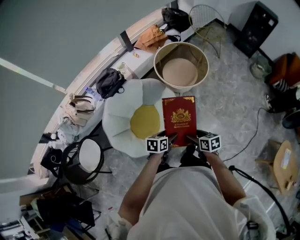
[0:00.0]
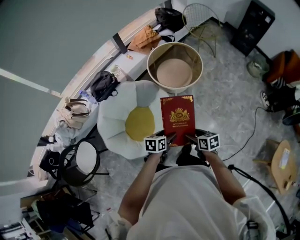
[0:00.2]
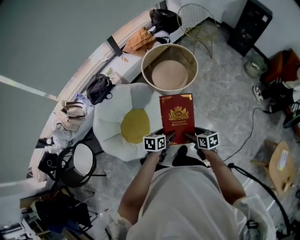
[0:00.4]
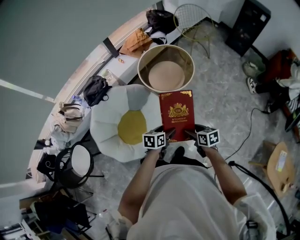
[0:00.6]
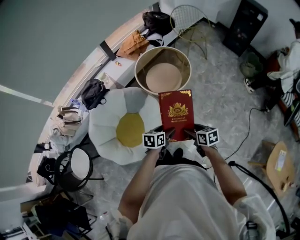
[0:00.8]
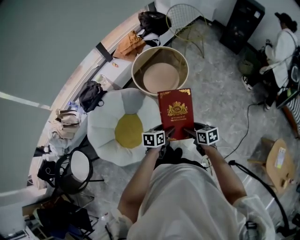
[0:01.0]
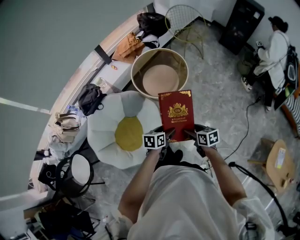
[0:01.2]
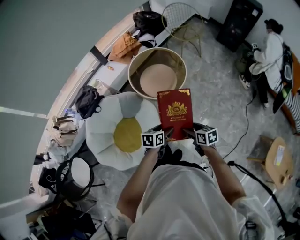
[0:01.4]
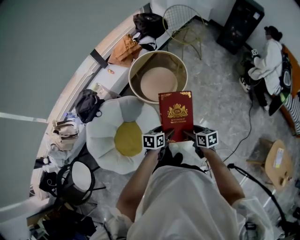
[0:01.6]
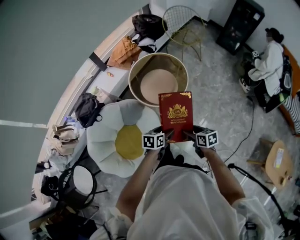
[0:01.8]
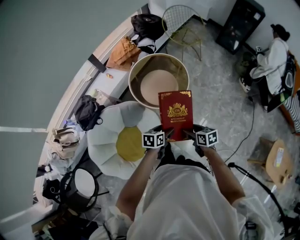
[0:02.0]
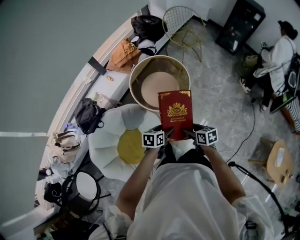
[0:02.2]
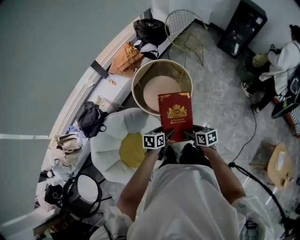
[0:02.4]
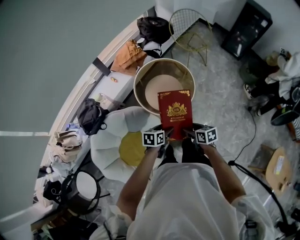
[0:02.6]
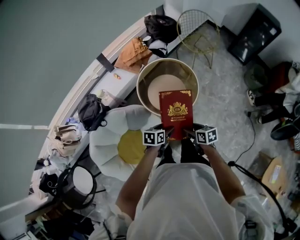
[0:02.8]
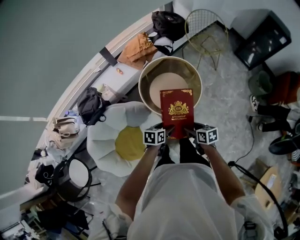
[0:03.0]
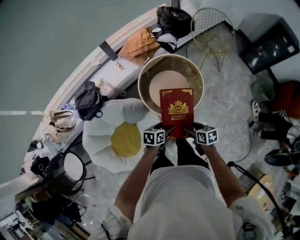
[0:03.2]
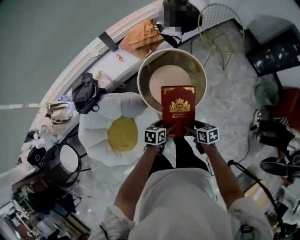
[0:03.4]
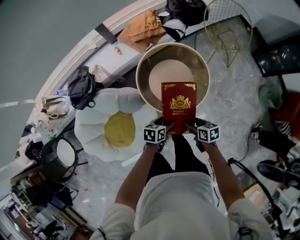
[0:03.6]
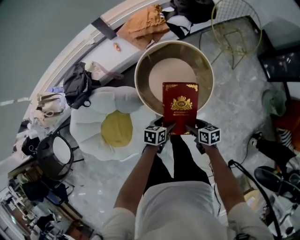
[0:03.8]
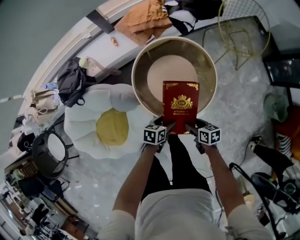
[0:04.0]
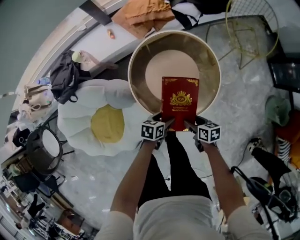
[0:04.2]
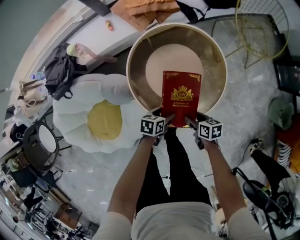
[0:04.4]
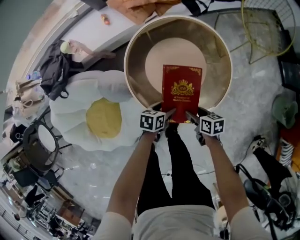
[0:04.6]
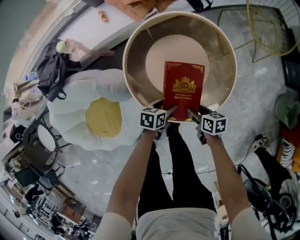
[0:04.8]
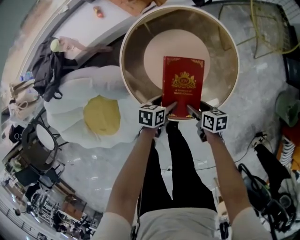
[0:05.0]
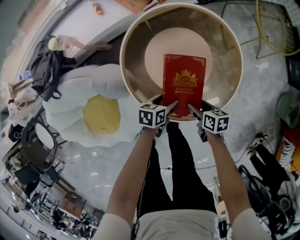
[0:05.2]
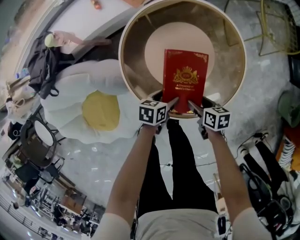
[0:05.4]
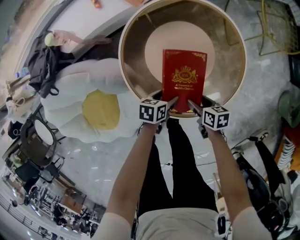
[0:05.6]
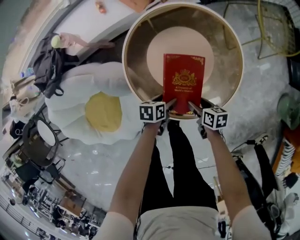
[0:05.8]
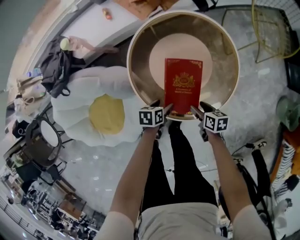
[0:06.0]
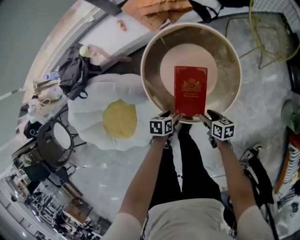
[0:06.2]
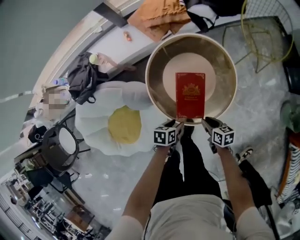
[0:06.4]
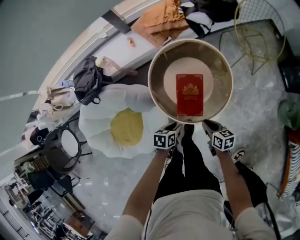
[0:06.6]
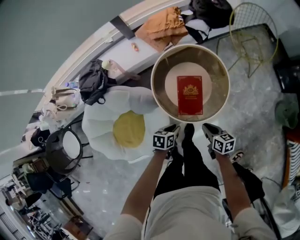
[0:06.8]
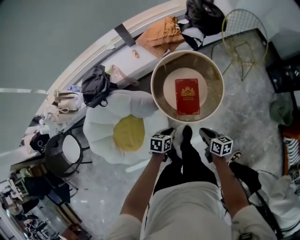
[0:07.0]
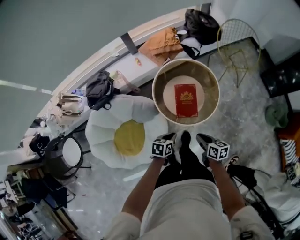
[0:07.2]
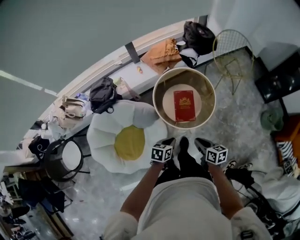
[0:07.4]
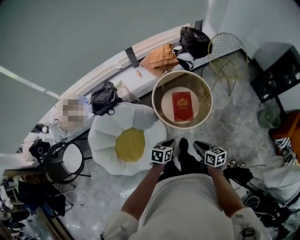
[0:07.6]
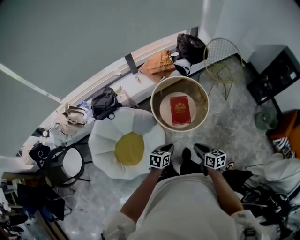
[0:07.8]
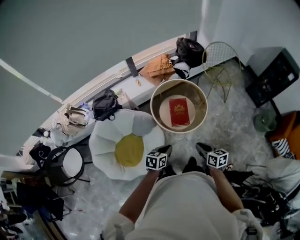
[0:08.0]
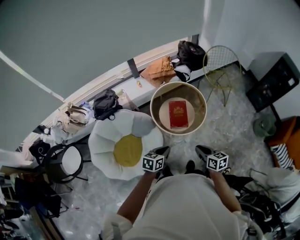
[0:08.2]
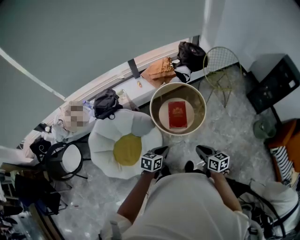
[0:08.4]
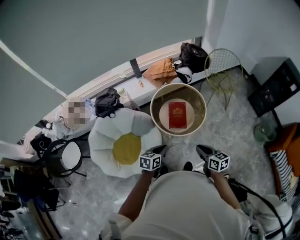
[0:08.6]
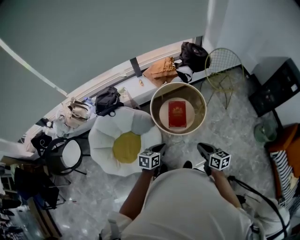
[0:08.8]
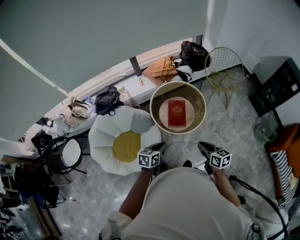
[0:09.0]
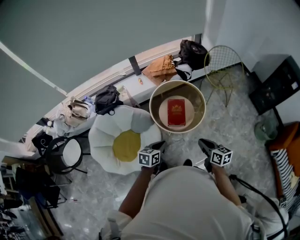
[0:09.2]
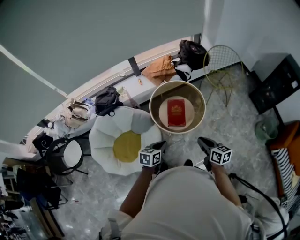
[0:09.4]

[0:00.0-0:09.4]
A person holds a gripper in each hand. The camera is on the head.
0:00.0 to 0:01.6: Both grippers travel together forward and to the right, about 25 cm.
0:01.6 to 0:03.2: The two grippers go some 20 cm forward.
0:03.2 to 0:04.8: The grippers both shift downward by roughly 35 cm.
0:04.8 to 0:06.2: The left gripper shifts by roughly 5 cm.
0:06.2 to 0:07.8: The grippers both shift upward and backward by approximately 40 cm. The left gripper changes its angle by about 30 degrees, and closes up. The right gripper changes its angle by about 30 degrees, and closes up.
0:07.8 to 0:09.4: The right gripper heads to the right and upward, covering approximately 15 cm. The left gripper is displaced upward by roughly 5 cm.

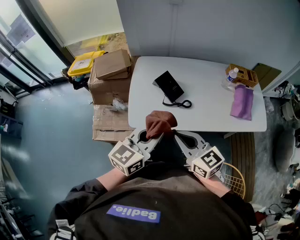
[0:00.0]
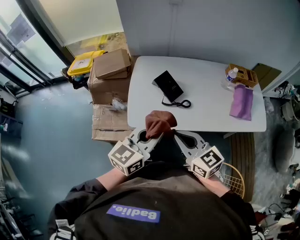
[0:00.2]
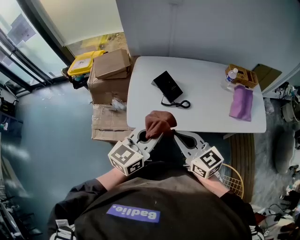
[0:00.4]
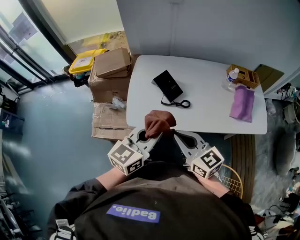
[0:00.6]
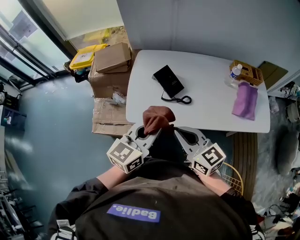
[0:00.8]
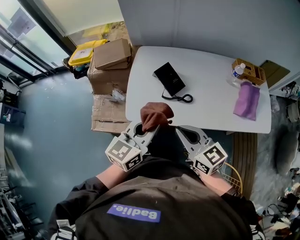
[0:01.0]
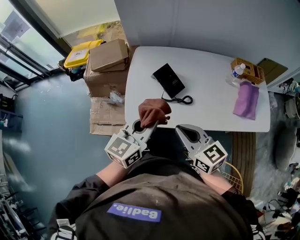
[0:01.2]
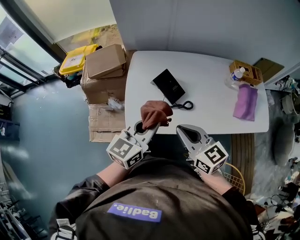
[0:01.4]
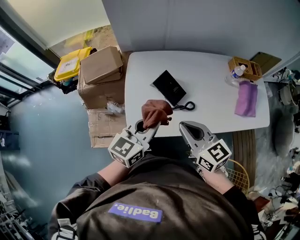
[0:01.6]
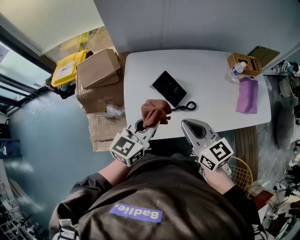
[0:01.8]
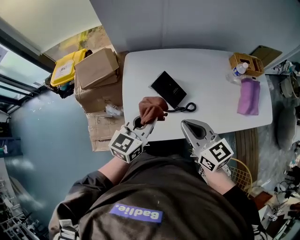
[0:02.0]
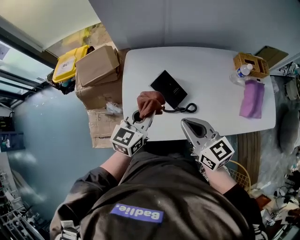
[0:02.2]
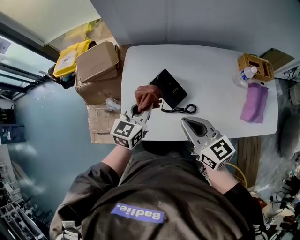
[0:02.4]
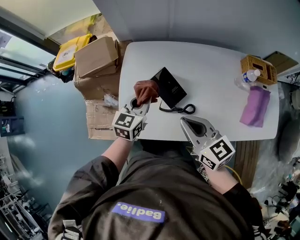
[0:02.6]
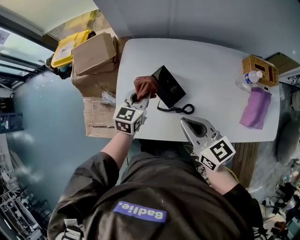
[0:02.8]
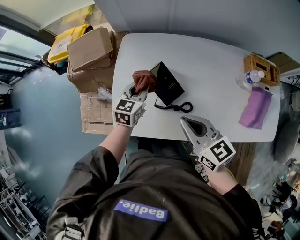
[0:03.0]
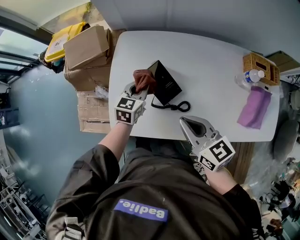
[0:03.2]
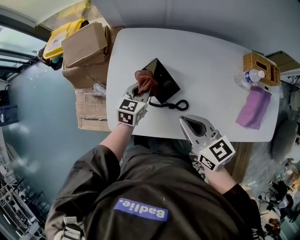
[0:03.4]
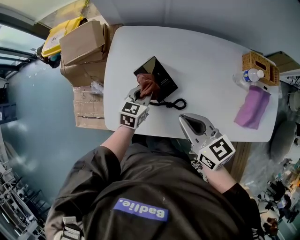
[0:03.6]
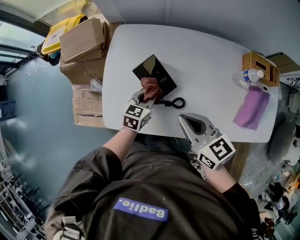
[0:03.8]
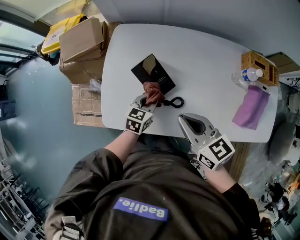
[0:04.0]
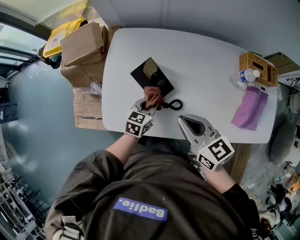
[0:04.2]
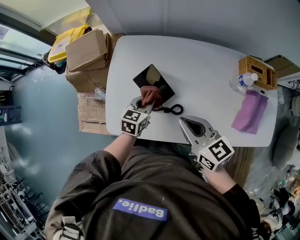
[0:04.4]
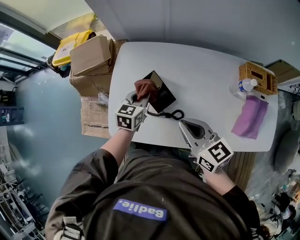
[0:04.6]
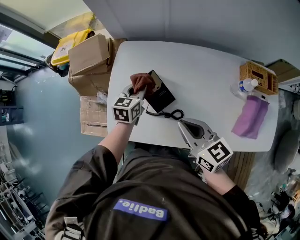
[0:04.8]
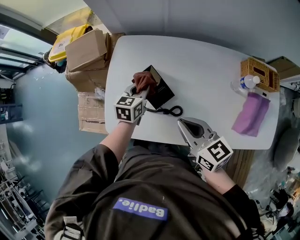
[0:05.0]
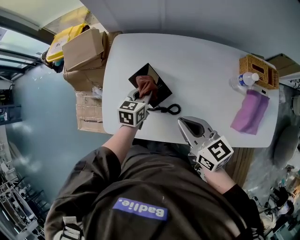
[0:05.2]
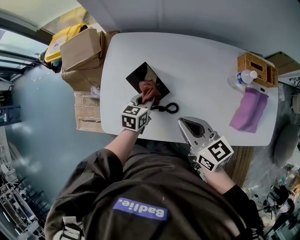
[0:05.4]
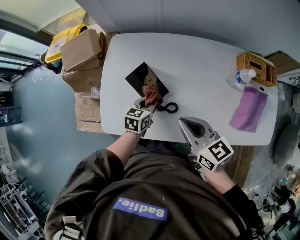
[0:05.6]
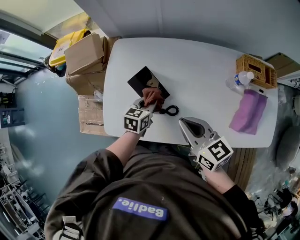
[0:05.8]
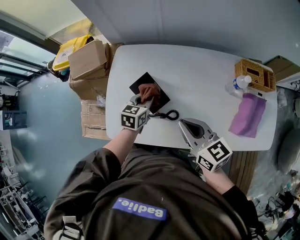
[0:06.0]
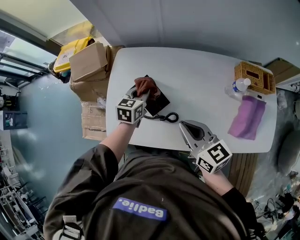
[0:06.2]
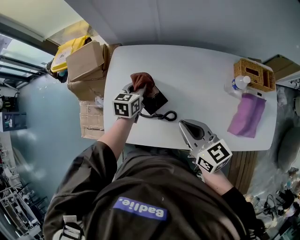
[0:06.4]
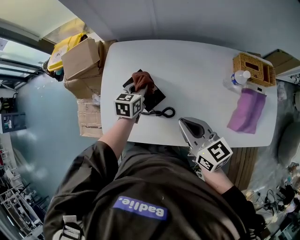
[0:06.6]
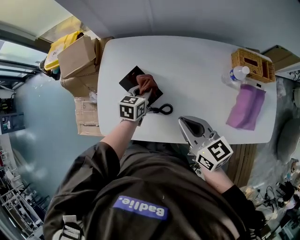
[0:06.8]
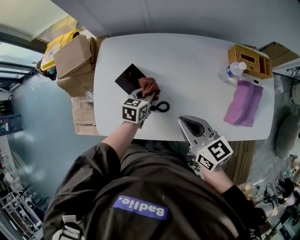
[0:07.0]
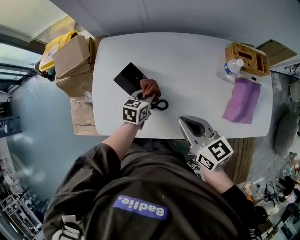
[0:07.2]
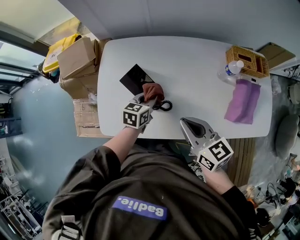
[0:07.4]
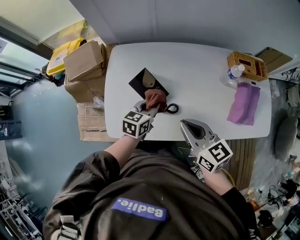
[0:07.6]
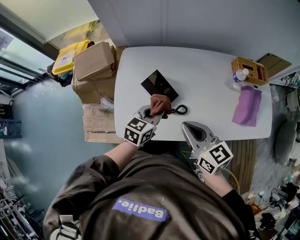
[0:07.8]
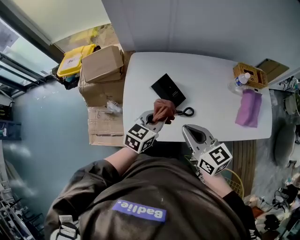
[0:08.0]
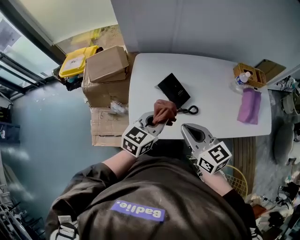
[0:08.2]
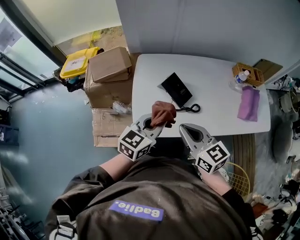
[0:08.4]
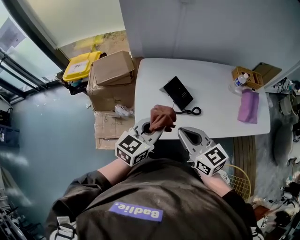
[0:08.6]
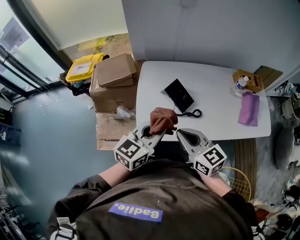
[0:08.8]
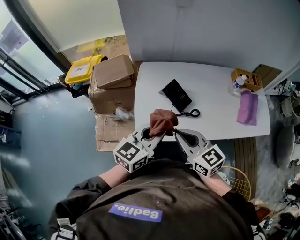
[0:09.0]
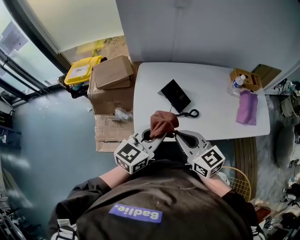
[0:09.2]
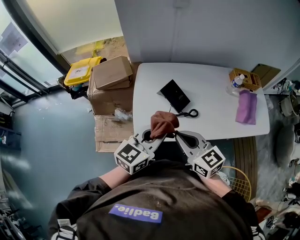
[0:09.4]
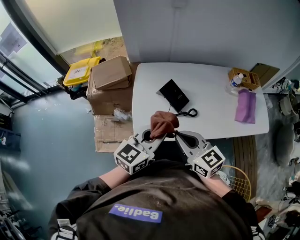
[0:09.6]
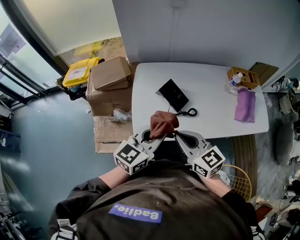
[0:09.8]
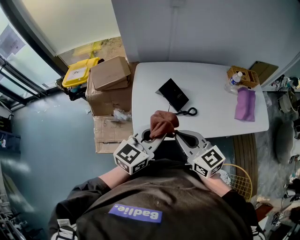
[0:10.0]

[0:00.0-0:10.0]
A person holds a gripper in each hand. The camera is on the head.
0:00.0 to 0:01.4: Both grippers travel together forward, approximately 10 cm.
0:01.4 to 0:02.8: The left gripper moves forward and downward, some 25 cm, and changes its angle by about 20 degrees; the right gripper shifts approximately 15 cm forward, downward and to the right.
0:02.8 to 0:04.2: The left gripper travels downward, to the right and backward by about 15 cm. Meanwhile the right gripper heads to the right, covering about 5 cm.
0:04.2 to 0:05.8: The left gripper reaches roughly 10 cm forward, then returns.
0:05.8 to 0:07.2: The left gripper travels forward and back again, approximately 10 cm each way.
0:07.2 to 0:08.6: The left gripper heads upward, backward and to the left, covering about 35 cm, and changes its angle by roughly 30 degrees. Meanwhile the right gripper goes approximately 25 cm to the left and backward.
0:08.6 to 0:10.0: The grippers make only small movements.

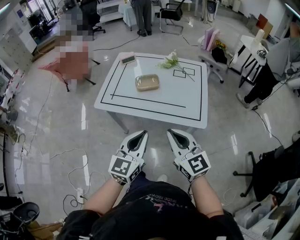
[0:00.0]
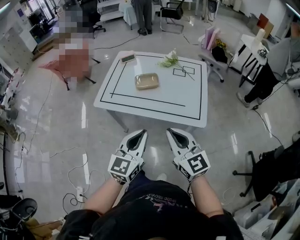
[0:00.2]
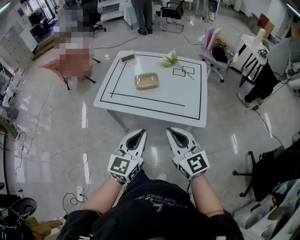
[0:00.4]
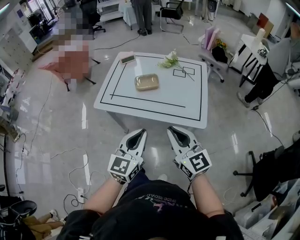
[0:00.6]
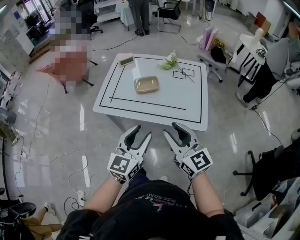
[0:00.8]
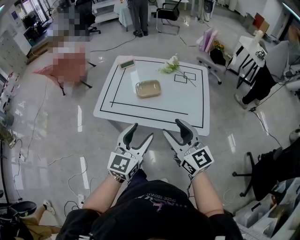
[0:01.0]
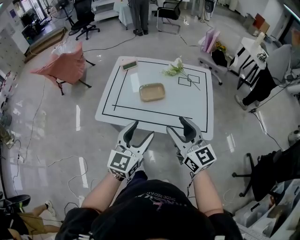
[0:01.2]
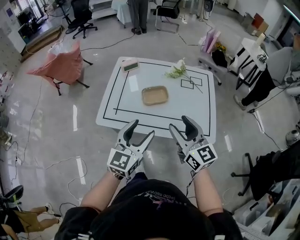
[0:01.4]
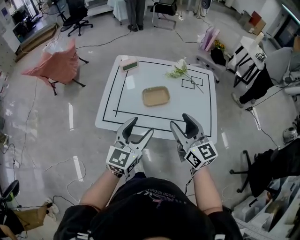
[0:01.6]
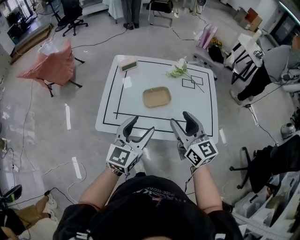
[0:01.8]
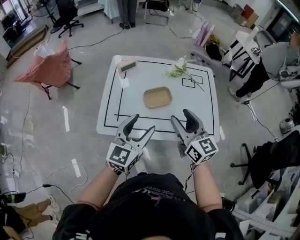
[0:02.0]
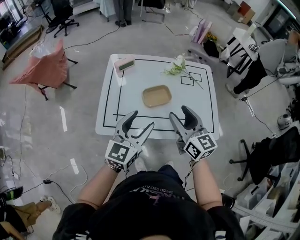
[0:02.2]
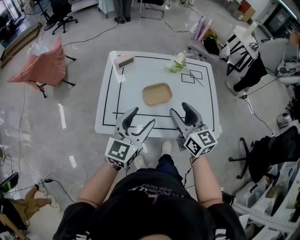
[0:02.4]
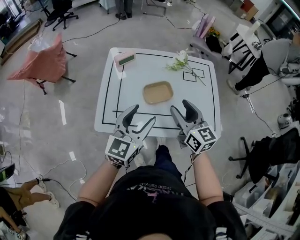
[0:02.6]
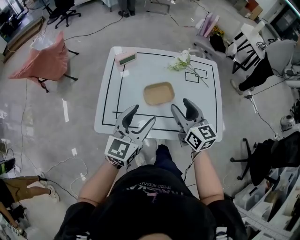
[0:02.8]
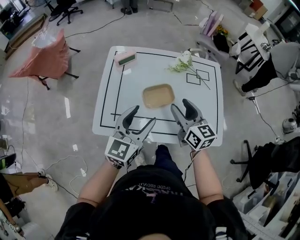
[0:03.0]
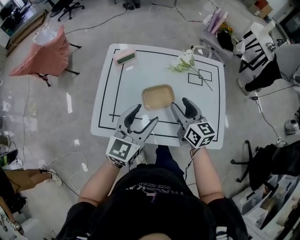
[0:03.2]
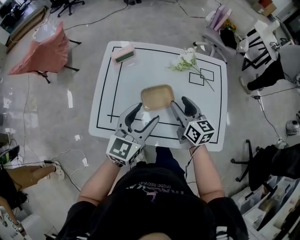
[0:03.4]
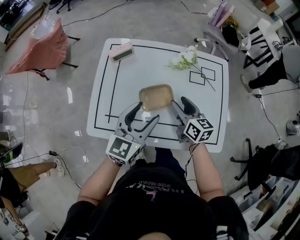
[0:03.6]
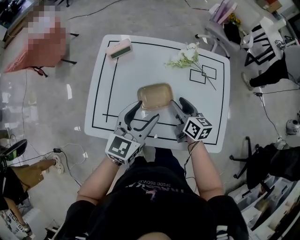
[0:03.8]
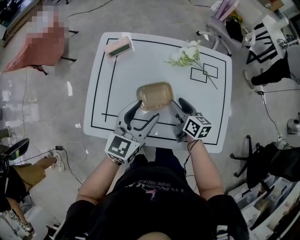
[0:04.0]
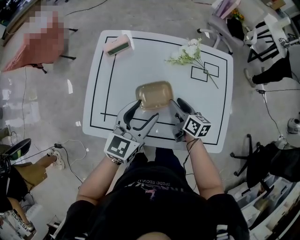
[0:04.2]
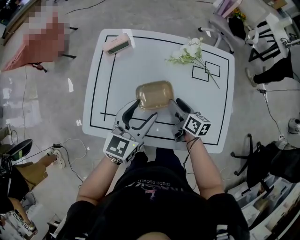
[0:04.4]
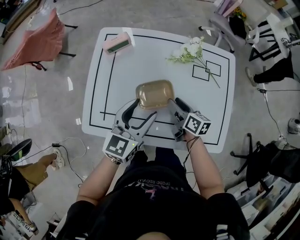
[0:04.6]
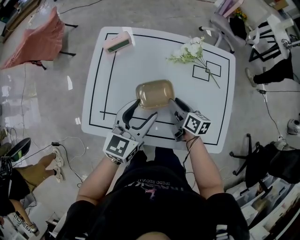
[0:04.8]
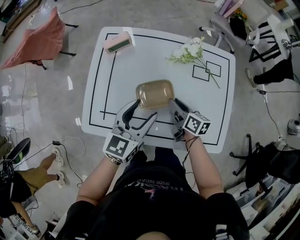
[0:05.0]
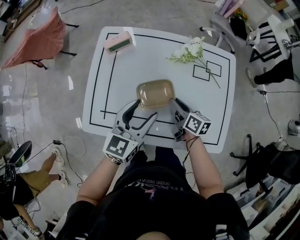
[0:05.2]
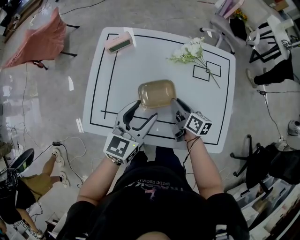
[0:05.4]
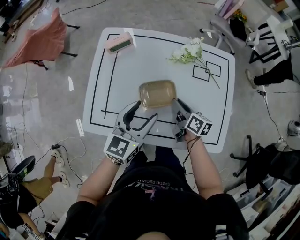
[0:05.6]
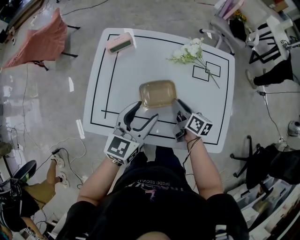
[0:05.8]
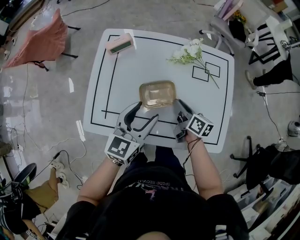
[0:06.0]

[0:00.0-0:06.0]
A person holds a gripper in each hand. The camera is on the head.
0:00.0 to 0:01.6: The right gripper shifts roughly 20 cm forward, and opens. The left gripper travels forward and to the left by some 20 cm, and opens up.
0:01.6 to 0:03.0: The left gripper moves forward, approximately 10 cm, while the right gripper heads forward and downward, covering about 15 cm.
0:03.0 to 0:04.4: The left gripper travels forward and downward by approximately 10 cm, while the right gripper moves downward and forward, approximately 20 cm, and swivels about 30 degrees.
0:04.4 to 0:06.0: The right gripper closes up.
